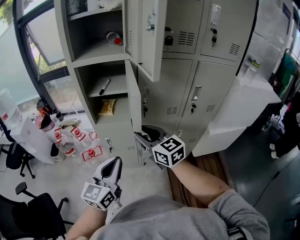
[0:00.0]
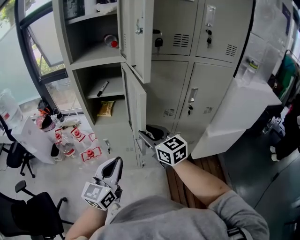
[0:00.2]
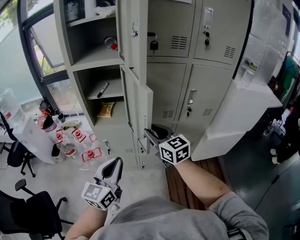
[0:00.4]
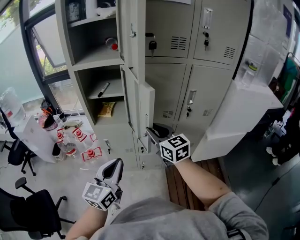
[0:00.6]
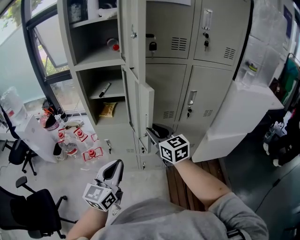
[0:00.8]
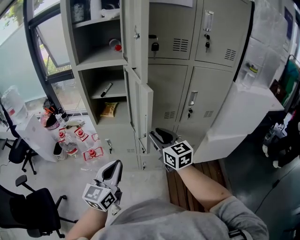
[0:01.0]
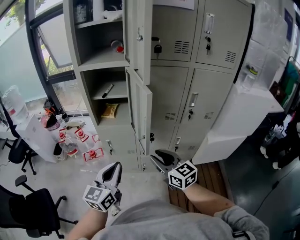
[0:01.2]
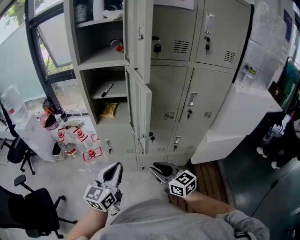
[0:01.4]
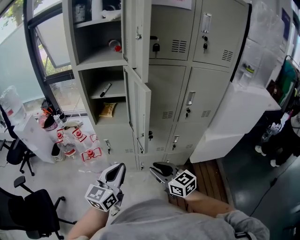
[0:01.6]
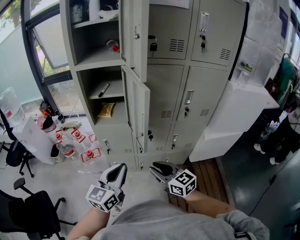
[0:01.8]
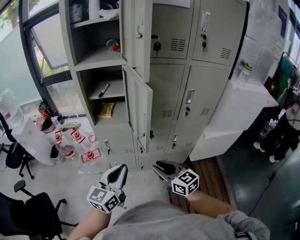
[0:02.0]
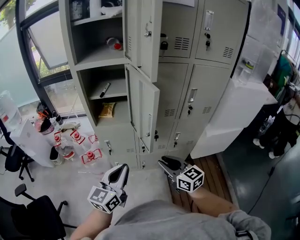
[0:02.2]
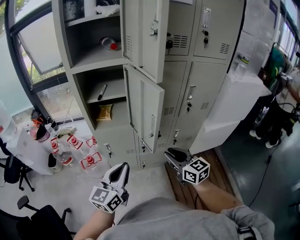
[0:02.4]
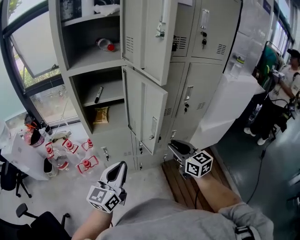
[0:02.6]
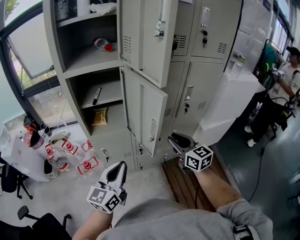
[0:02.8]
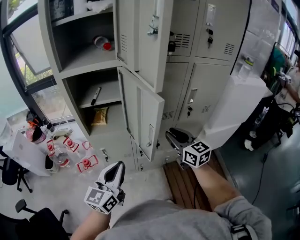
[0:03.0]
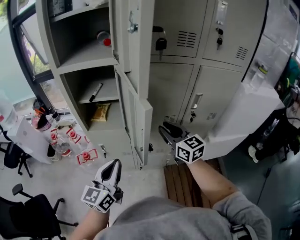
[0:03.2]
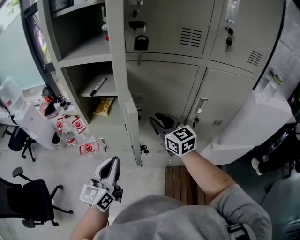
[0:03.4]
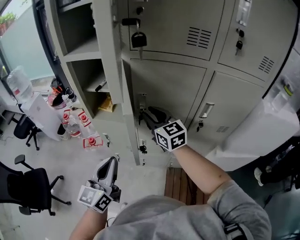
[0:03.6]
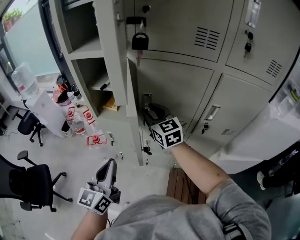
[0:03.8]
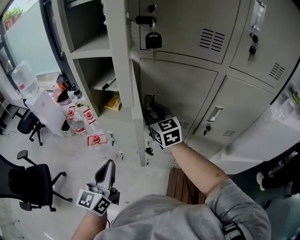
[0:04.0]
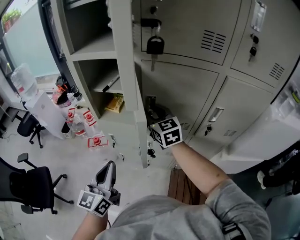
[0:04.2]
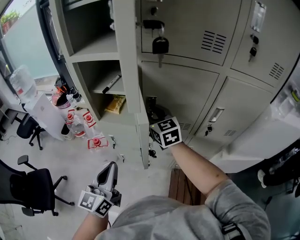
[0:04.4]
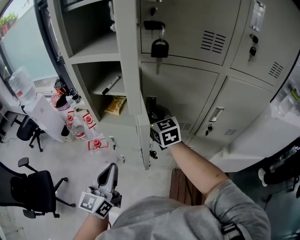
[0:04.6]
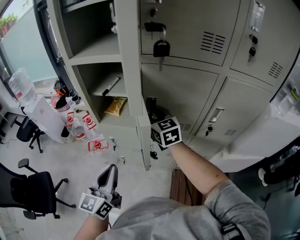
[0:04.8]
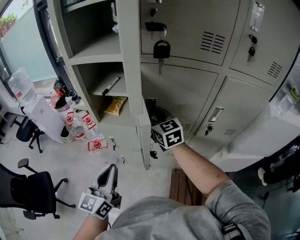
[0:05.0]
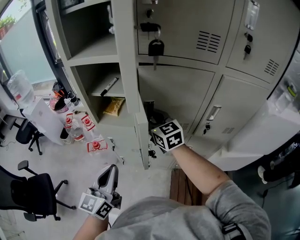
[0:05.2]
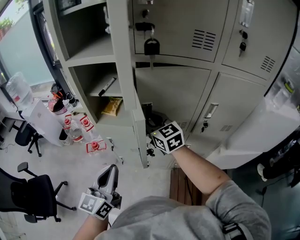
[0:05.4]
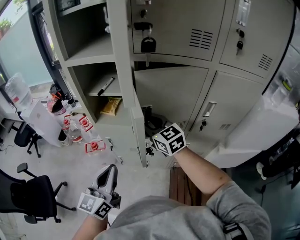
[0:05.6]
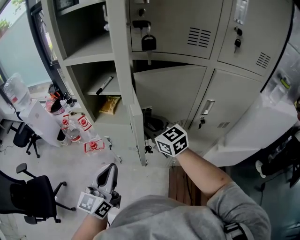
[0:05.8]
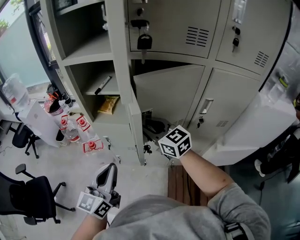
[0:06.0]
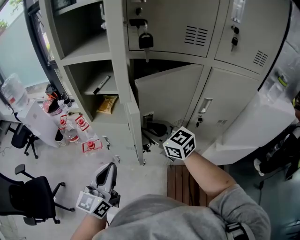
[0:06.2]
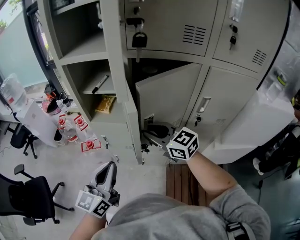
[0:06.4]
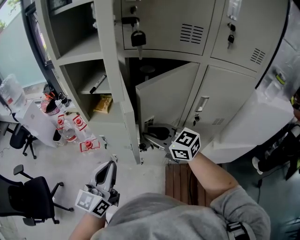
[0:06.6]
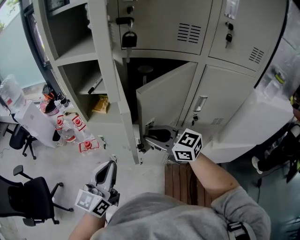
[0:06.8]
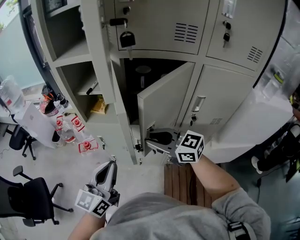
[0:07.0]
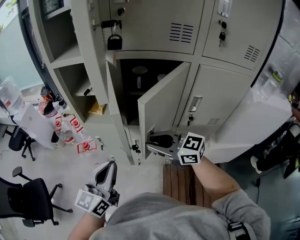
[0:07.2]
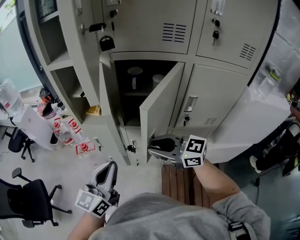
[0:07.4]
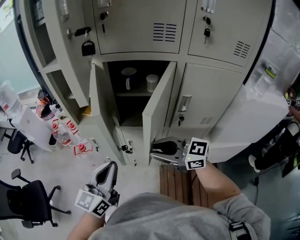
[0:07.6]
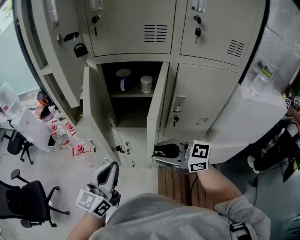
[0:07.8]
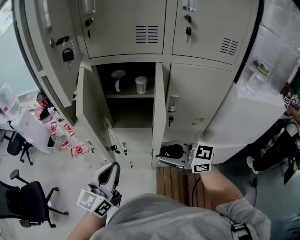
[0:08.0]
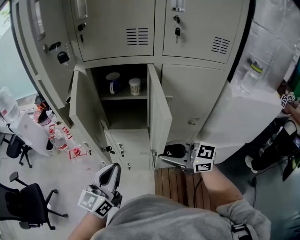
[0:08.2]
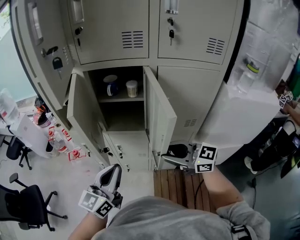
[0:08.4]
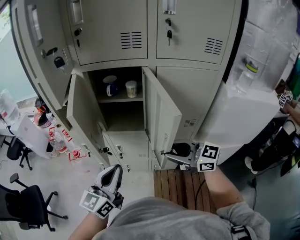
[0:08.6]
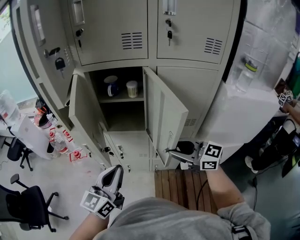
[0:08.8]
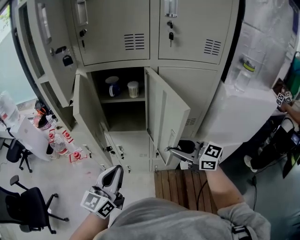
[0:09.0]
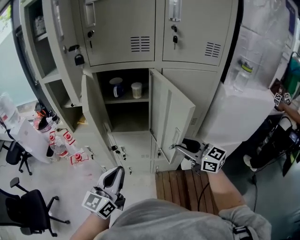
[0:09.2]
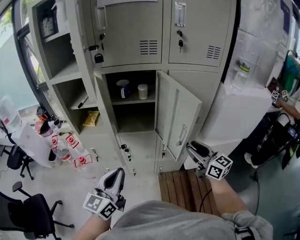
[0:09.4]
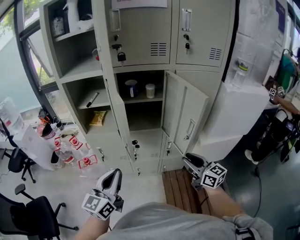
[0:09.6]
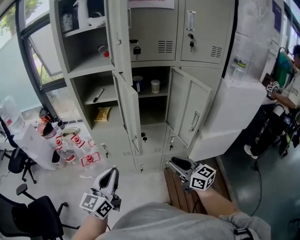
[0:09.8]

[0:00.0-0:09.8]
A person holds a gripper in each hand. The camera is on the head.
0.0 to 1.4 s: The right gripper moves backward, downward and to the right, some 20 cm.
1.4 to 2.8 s: The left gripper heads forward, covering about 5 cm. The right gripper heads forward, upward and to the right, covering about 15 cm, and turns by approximately 30 degrees.
2.8 to 4.2 s: The right gripper moves some 25 cm, and swivels some 20 degrees. Meanwhile the left gripper swivels approximately 30 degrees.
4.2 to 5.6 s: The right gripper moves backward, some 5 cm.
5.6 to 7.0 s: The right gripper moves backward, approximately 10 cm, and rotates roughly 20 degrees.
7.0 to 8.4 s: The two grippers go roughly 20 cm to the right and backward.
8.4 to 9.8 s: The left gripper travels to the left by approximately 20 cm; the right gripper shifts some 15 cm to the left and backward, and rotates approximately 30 degrees.

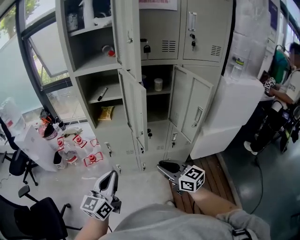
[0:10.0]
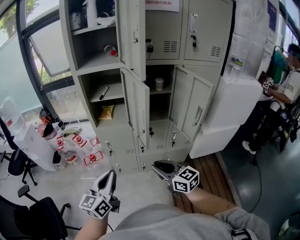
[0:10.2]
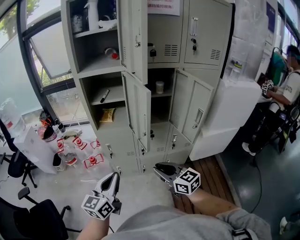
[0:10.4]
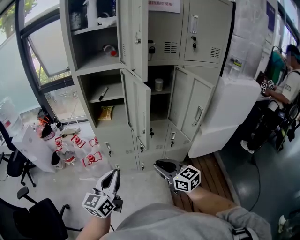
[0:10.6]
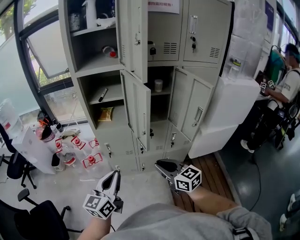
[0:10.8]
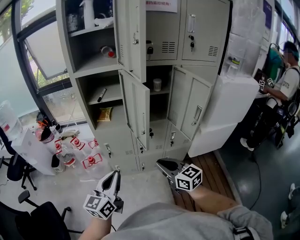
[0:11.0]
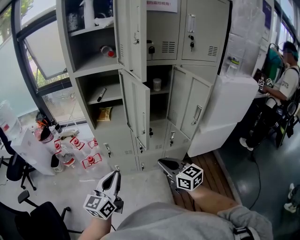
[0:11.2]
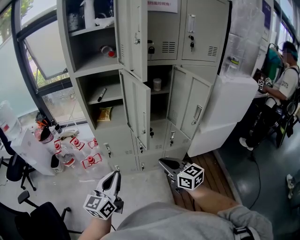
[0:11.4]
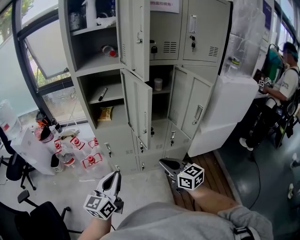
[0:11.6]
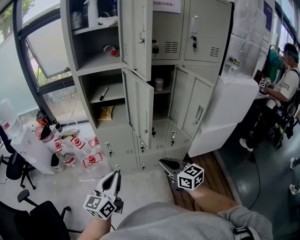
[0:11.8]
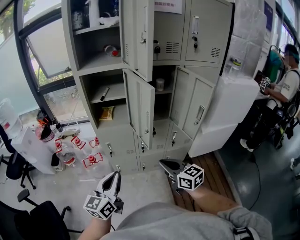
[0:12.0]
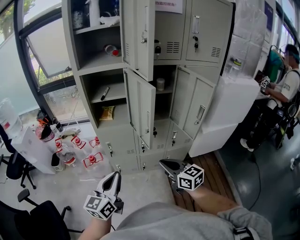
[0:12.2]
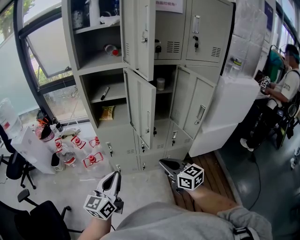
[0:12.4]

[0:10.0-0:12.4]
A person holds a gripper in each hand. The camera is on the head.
10.0 to 12.4 s: There are only small adjustments of the grippers.

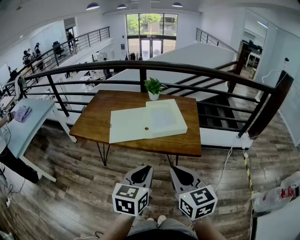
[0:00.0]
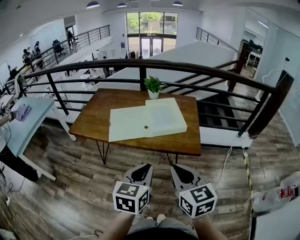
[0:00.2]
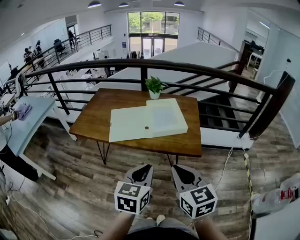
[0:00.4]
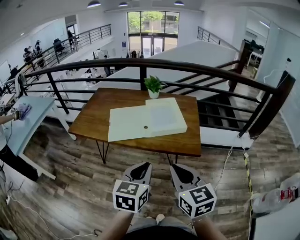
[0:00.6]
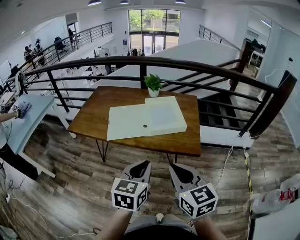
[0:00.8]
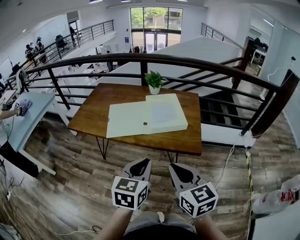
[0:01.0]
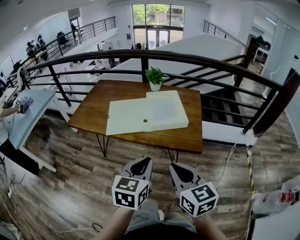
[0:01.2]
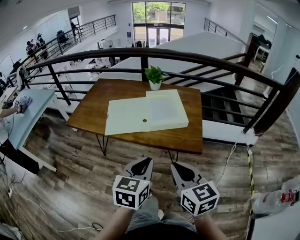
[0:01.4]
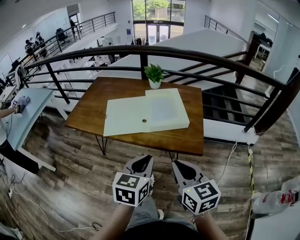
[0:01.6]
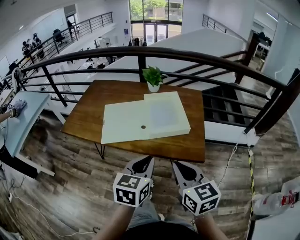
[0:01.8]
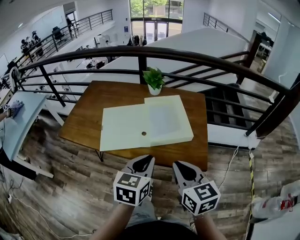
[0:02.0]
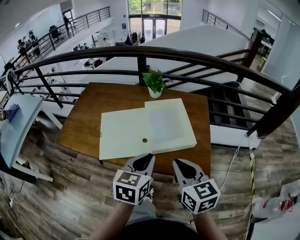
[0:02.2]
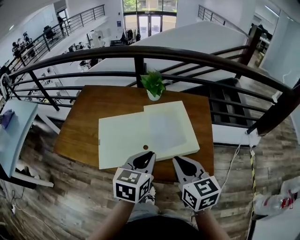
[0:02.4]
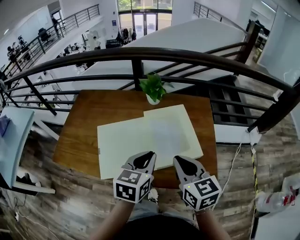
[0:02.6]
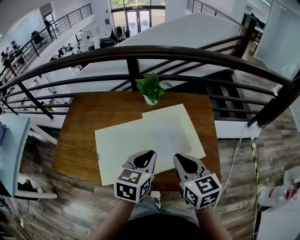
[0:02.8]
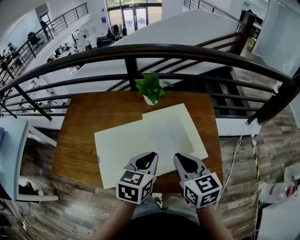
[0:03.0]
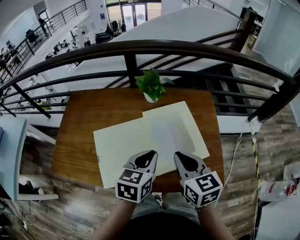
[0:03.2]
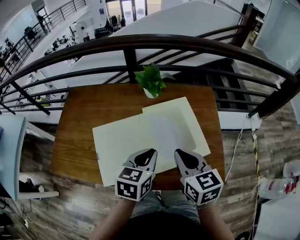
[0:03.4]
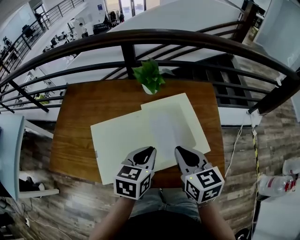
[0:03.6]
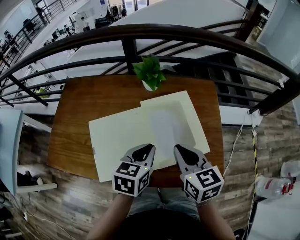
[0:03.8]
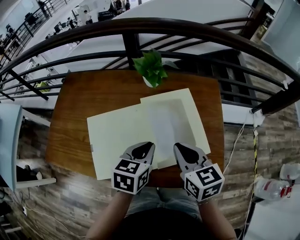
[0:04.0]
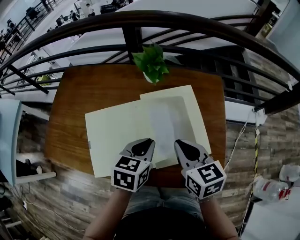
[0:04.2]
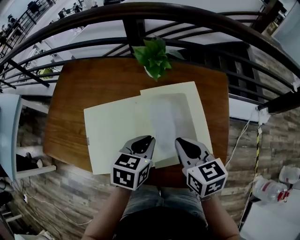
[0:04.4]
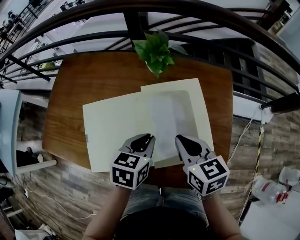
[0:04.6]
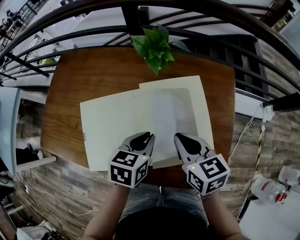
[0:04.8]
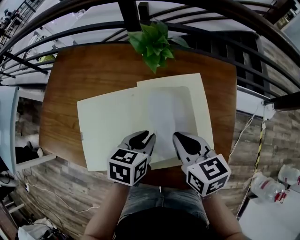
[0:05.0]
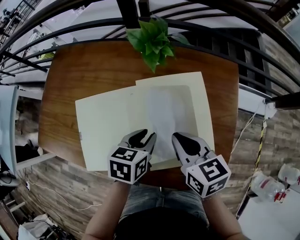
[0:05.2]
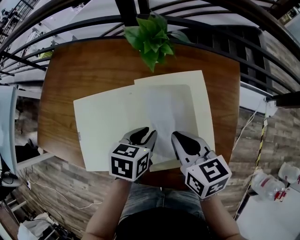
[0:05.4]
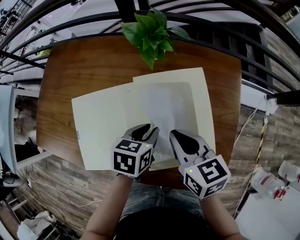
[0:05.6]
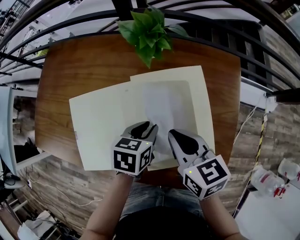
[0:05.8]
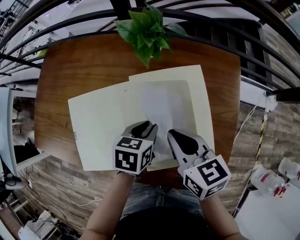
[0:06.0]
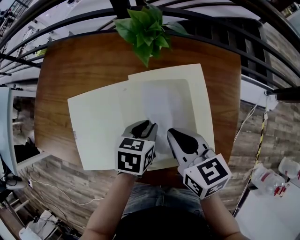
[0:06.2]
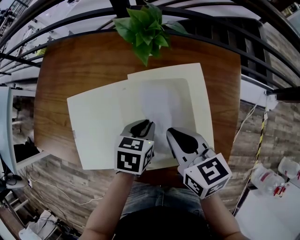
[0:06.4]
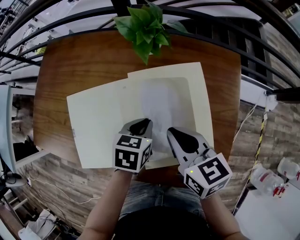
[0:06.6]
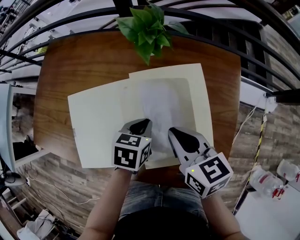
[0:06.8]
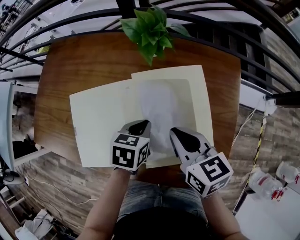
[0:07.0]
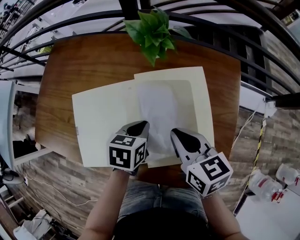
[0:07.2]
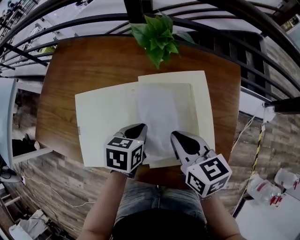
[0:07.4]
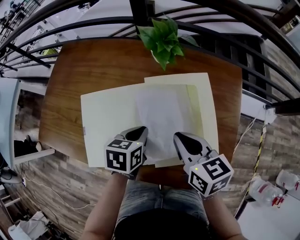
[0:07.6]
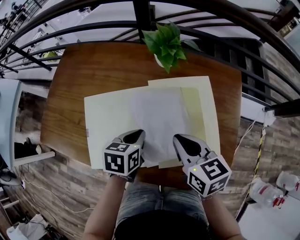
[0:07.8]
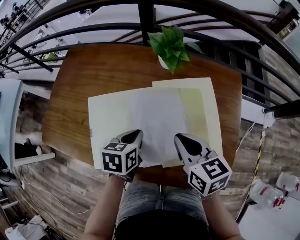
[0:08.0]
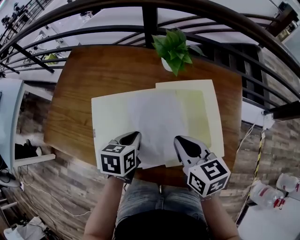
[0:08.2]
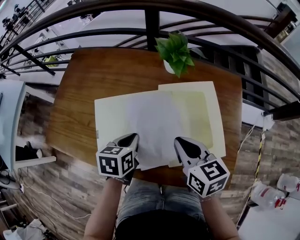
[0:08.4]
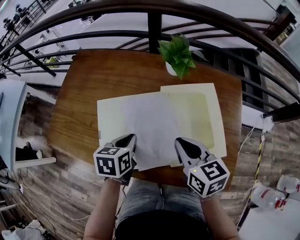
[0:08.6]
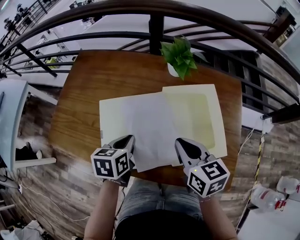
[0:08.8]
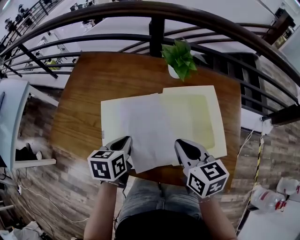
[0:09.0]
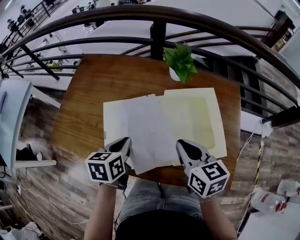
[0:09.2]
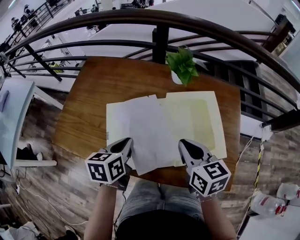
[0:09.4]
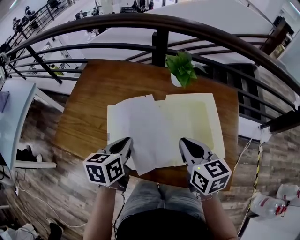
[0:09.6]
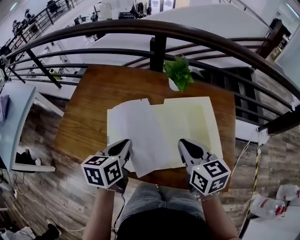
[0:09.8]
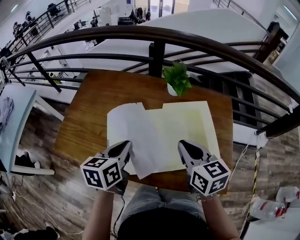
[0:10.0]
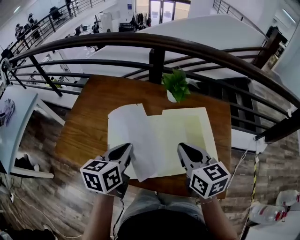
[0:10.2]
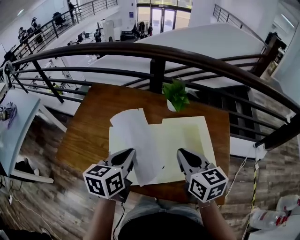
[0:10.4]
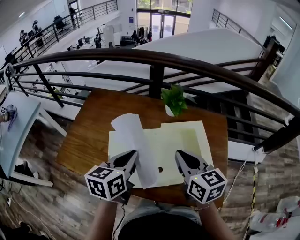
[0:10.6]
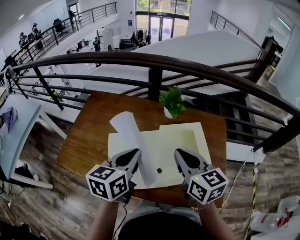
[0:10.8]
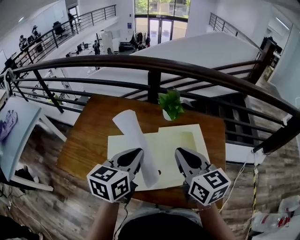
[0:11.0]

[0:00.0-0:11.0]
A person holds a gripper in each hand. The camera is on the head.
0.0 to 1.6 s: Both grippers move forward, approximately 10 cm.
1.6 to 3.2 s: The grippers both shift forward by approximately 30 cm.
3.2 to 4.8 s: The two grippers go approximately 10 cm downward and forward.
4.8 to 6.2 s: The left gripper goes roughly 5 cm downward.
6.2 to 7.8 s: The left gripper travels to the left by approximately 10 cm.
7.8 to 9.4 s: The right gripper ends up approximately 5 cm from where it was. The left gripper shifts approximately 15 cm to the left and upward.
9.4 to 11.0 s: The left gripper is displaced upward and to the right by roughly 15 cm, and changes its angle by about 30 degrees. The right gripper goes approximately 15 cm upward.

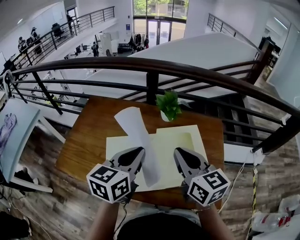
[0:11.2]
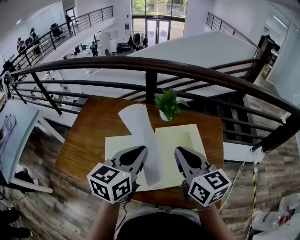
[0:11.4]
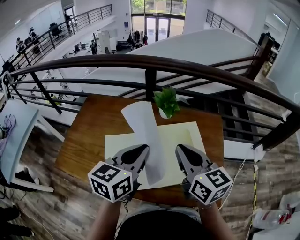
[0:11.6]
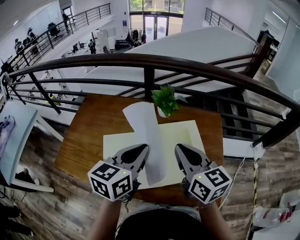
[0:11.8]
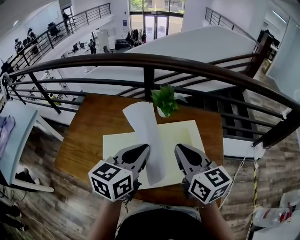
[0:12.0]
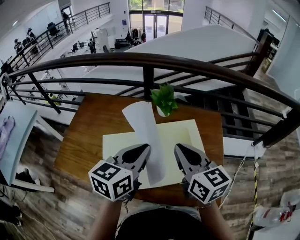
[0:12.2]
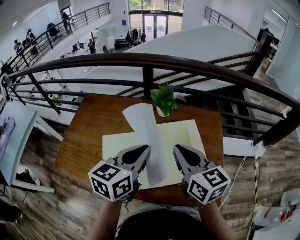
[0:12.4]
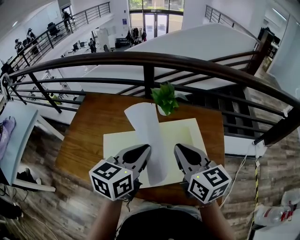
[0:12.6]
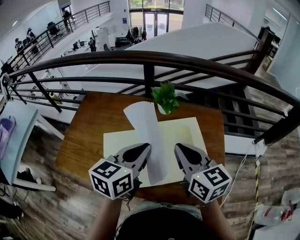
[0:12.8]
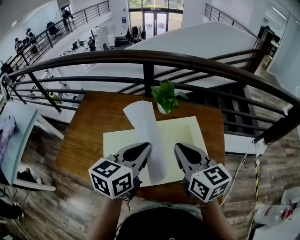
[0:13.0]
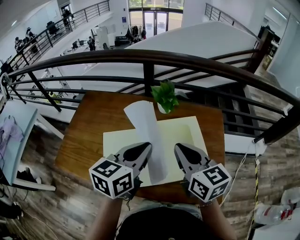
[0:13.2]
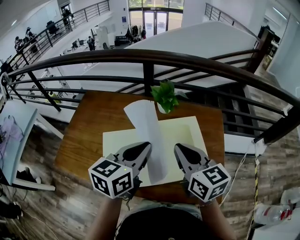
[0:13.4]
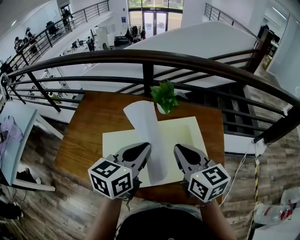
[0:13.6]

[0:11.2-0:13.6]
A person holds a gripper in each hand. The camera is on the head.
11.2 to 13.6 s: The grippers make only small movements.
